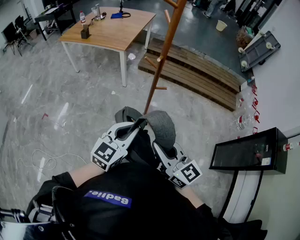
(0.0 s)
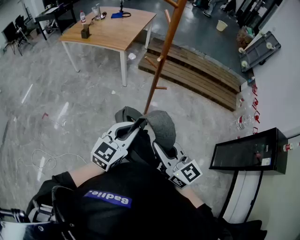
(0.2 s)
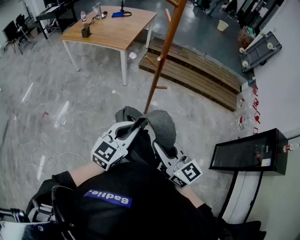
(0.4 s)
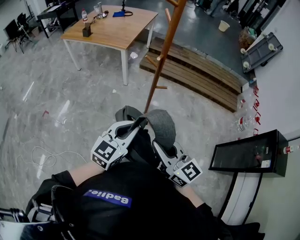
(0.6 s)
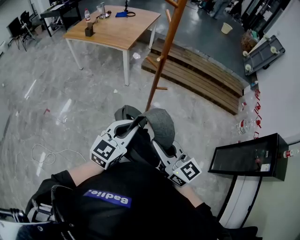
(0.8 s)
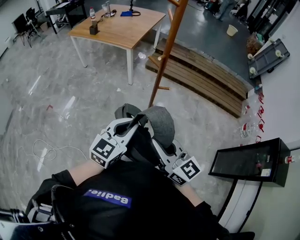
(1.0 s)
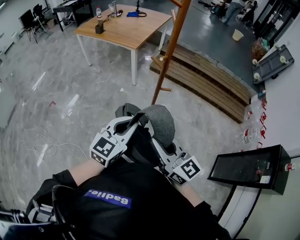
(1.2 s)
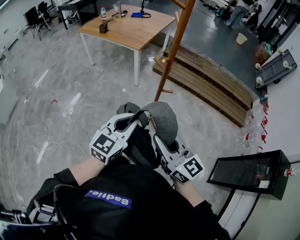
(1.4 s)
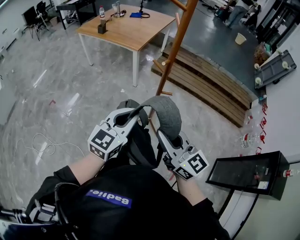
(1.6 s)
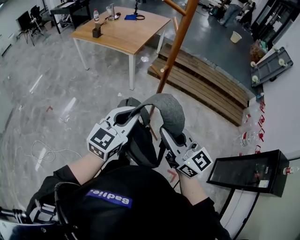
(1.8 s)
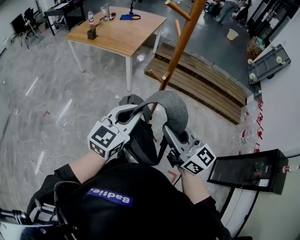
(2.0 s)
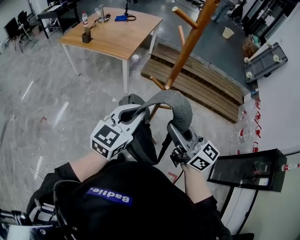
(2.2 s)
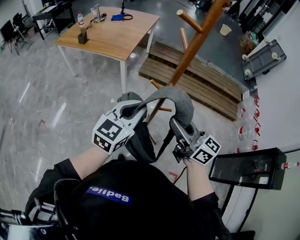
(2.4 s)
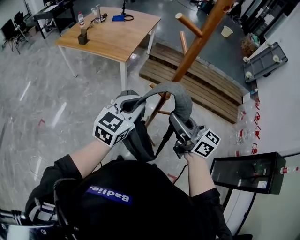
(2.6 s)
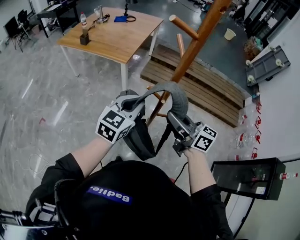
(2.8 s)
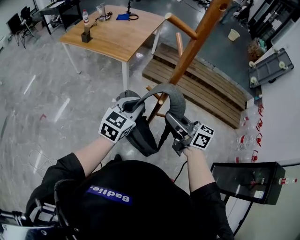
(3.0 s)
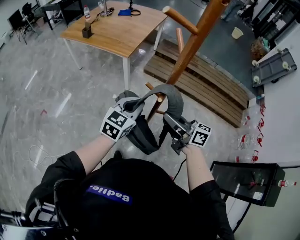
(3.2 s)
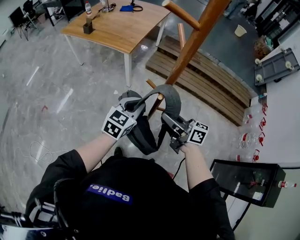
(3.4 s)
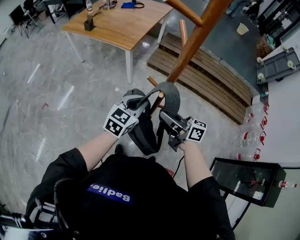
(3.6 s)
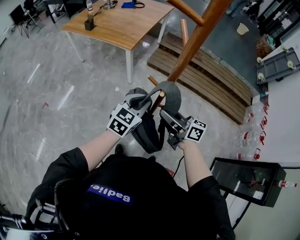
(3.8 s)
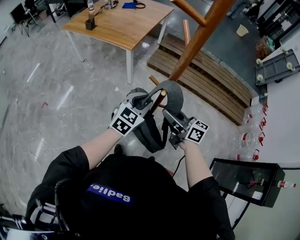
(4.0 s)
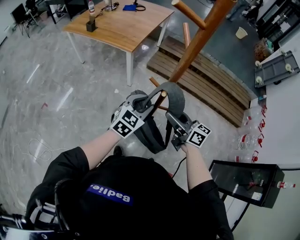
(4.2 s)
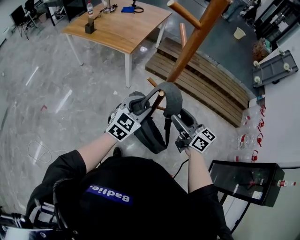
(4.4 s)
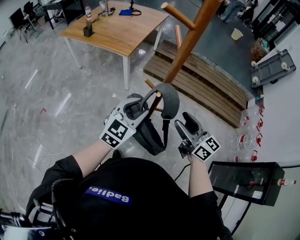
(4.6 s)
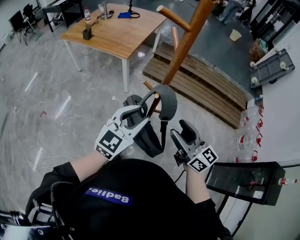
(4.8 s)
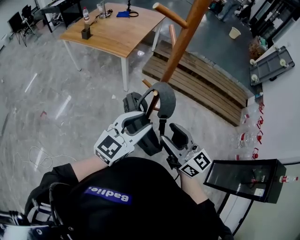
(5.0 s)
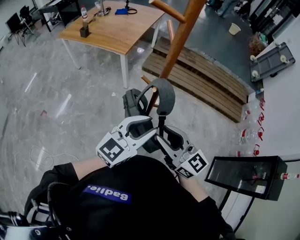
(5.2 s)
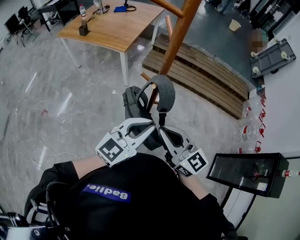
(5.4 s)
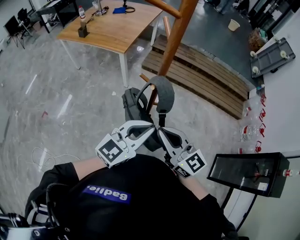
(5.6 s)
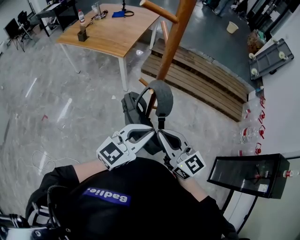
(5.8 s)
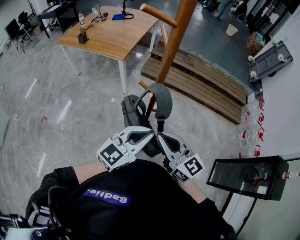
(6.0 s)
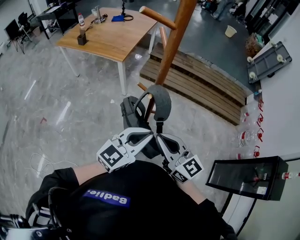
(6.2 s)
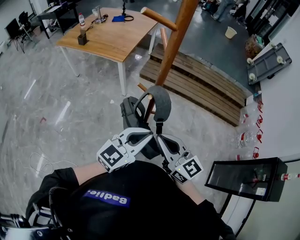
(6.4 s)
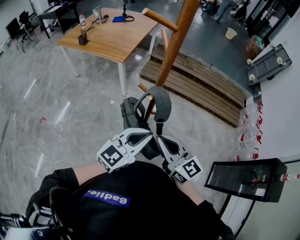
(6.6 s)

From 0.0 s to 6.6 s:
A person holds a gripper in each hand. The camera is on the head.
From 0.0 s to 1.6 s: Both grippers move forward, some 5 cm.
From 1.6 s to 3.2 s: Both grippers move forward, roughly 25 cm. The right gripper turns by roughly 40 degrees.
From 3.2 s to 5.0 s: The right gripper travels backward by roughly 10 cm, swivels approximately 30 degrees, and opens up. Meanwhile the left gripper is displaced backward and upward by approximately 15 cm, and opens its fingers.
From 5.0 s to 6.6 s: The left gripper closes. Meanwhile the right gripper closes its fingers.

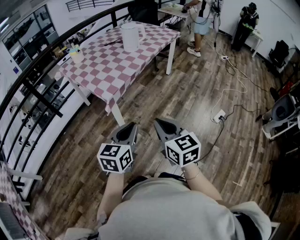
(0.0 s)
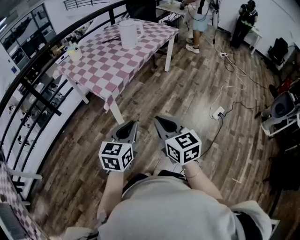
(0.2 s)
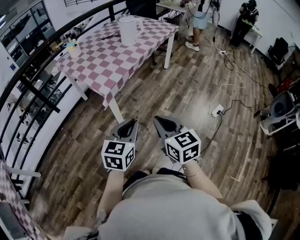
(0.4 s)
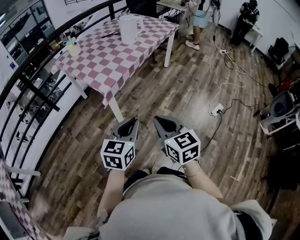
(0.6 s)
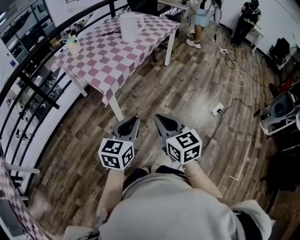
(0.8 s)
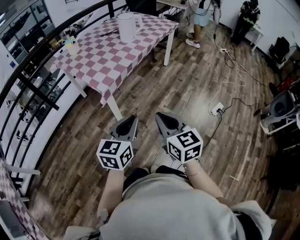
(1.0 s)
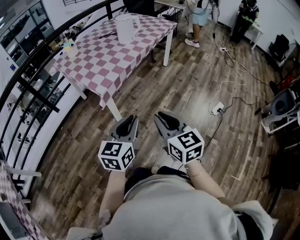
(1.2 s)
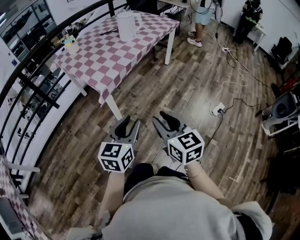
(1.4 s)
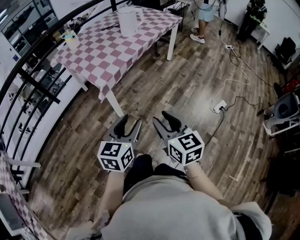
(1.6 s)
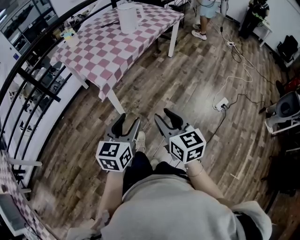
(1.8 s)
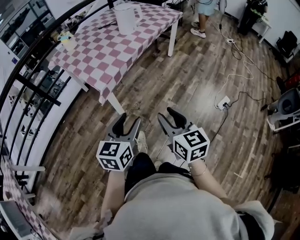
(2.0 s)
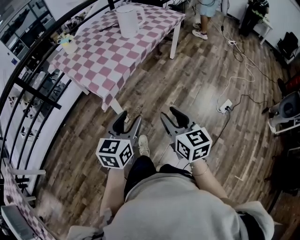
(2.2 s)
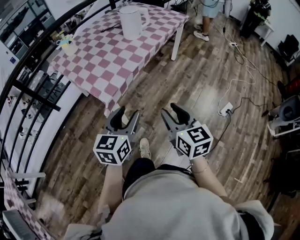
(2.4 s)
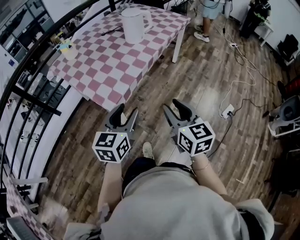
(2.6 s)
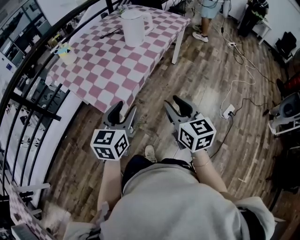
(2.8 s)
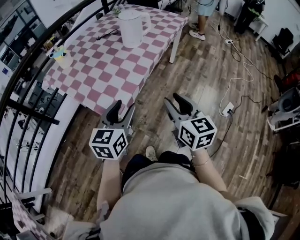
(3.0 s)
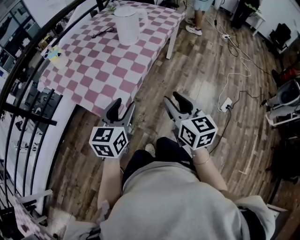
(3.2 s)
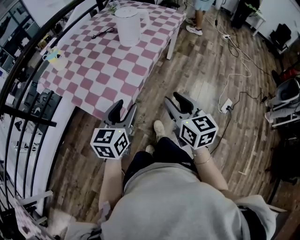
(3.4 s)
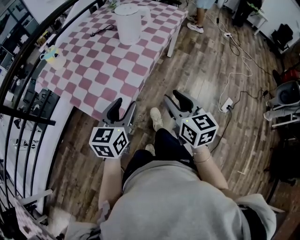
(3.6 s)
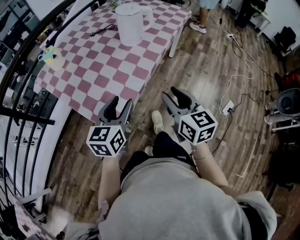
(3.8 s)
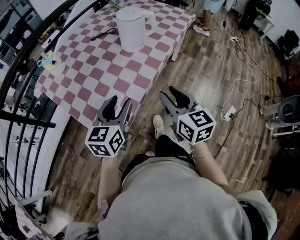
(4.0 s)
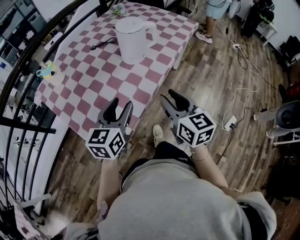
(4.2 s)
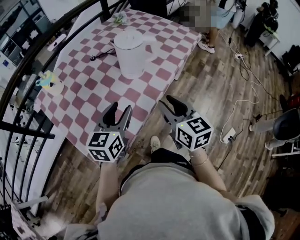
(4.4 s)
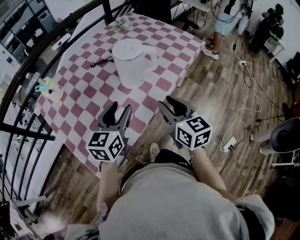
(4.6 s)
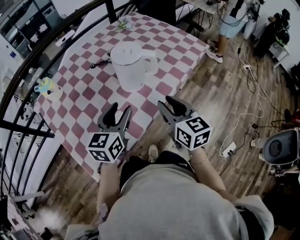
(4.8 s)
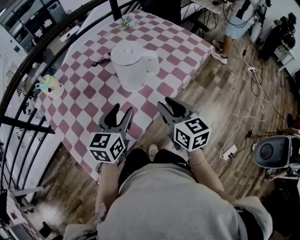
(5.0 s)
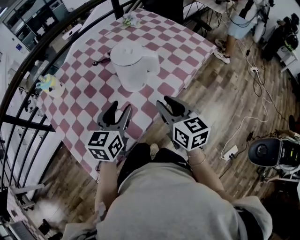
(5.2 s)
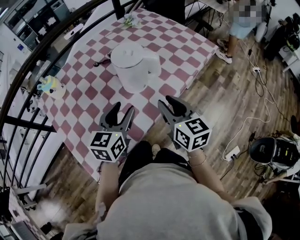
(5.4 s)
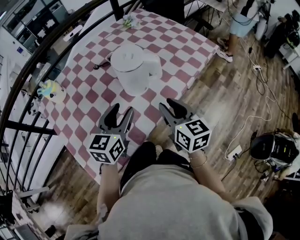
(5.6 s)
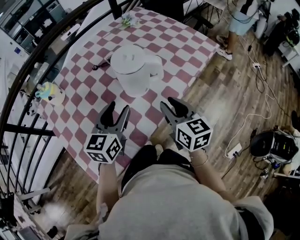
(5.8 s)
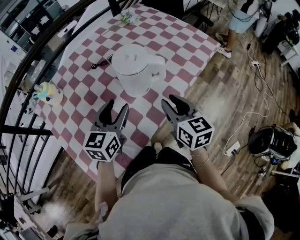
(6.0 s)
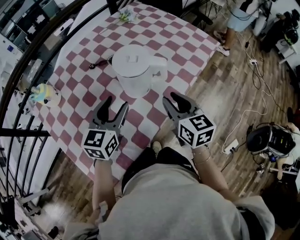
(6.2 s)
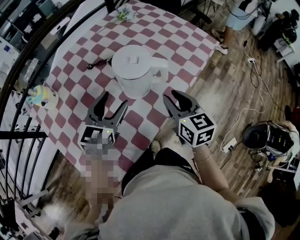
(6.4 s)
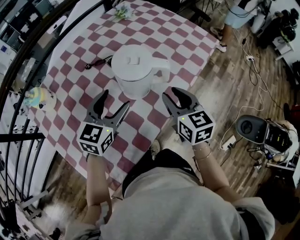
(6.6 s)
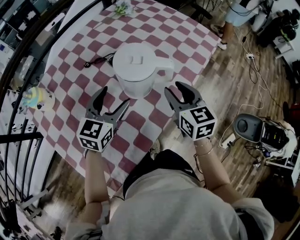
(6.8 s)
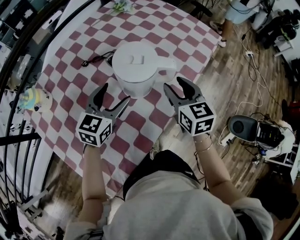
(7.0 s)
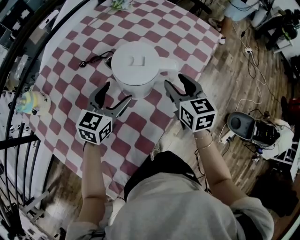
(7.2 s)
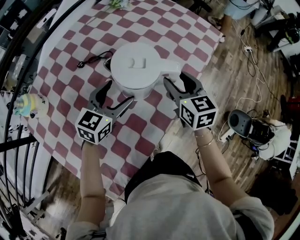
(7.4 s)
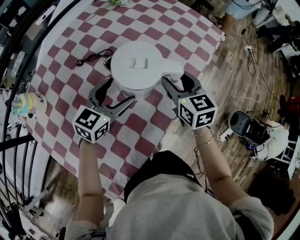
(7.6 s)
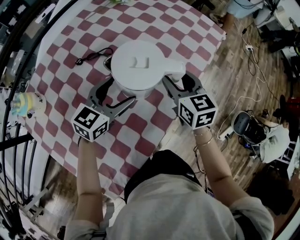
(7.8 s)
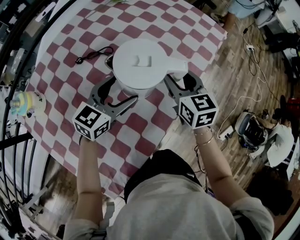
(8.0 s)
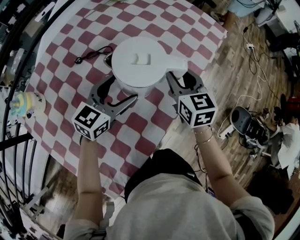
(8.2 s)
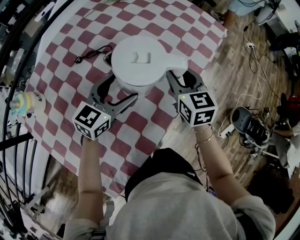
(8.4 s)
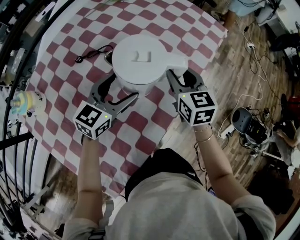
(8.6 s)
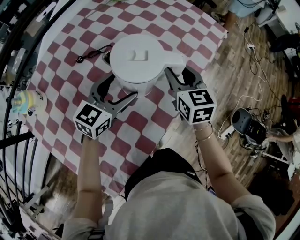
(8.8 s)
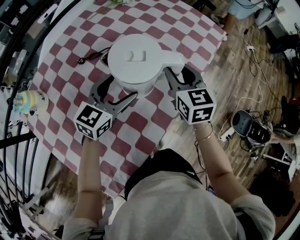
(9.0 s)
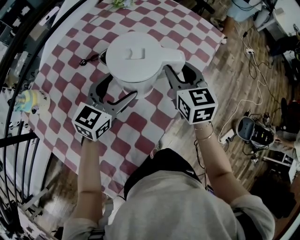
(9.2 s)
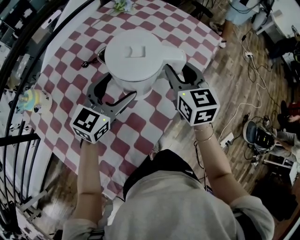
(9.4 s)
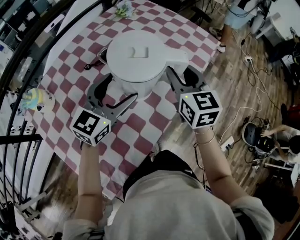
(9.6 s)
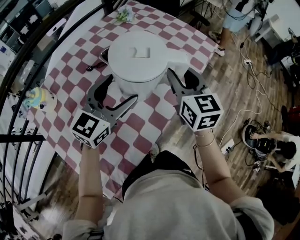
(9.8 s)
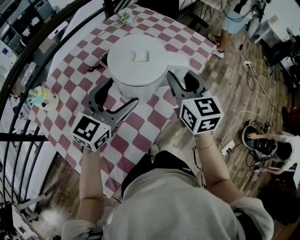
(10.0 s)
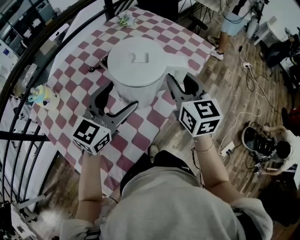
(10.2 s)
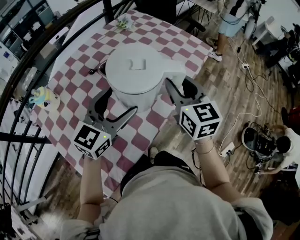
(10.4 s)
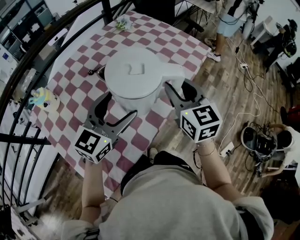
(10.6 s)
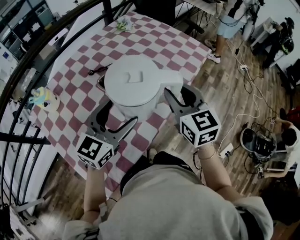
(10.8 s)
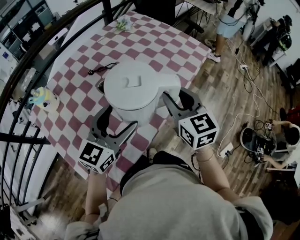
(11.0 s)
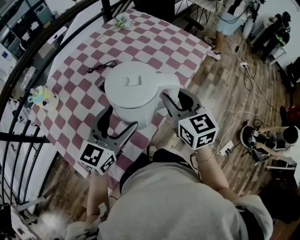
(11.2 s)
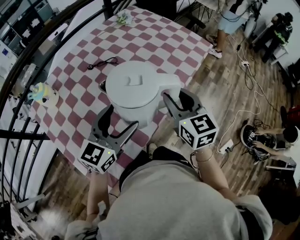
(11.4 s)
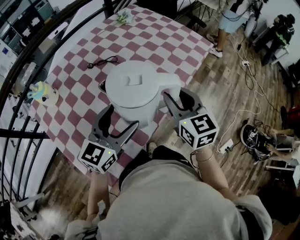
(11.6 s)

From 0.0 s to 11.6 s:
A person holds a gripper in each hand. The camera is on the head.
From 0.0 s to 1.4 s: The right gripper opens its fingers.
From 1.4 s to 2.8 s: Both grippers travel together forward, some 25 cm.
From 2.8 s to 4.4 s: Both grippers travel together forward, some 30 cm.
From 4.4 s to 5.8 s: The two grippers go approximately 15 cm forward.
From 5.8 s to 7.2 s: The right gripper travels forward by approximately 15 cm, and opens up, while the left gripper goes about 15 cm forward and downward, rotates about 20 degrees, and opens up.
From 7.2 s to 8.8 s: The grippers move only a little.
From 8.8 s to 10.2 s: Both grippers move upward and backward, roughly 15 cm.
From 10.2 s to 11.6 s: The grippers both shift backward by about 5 cm.

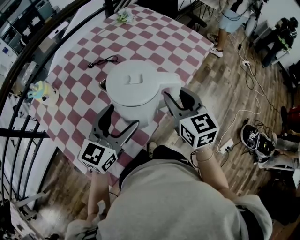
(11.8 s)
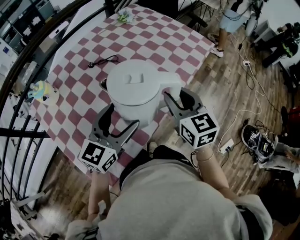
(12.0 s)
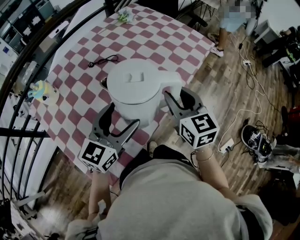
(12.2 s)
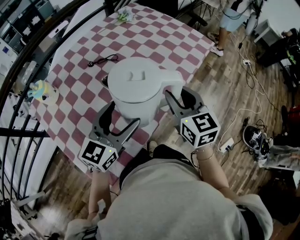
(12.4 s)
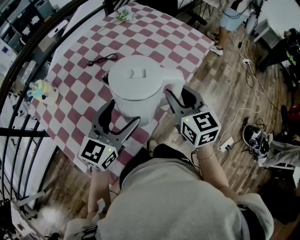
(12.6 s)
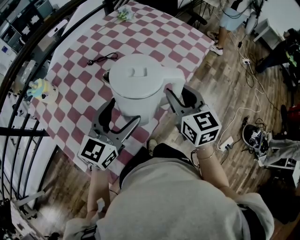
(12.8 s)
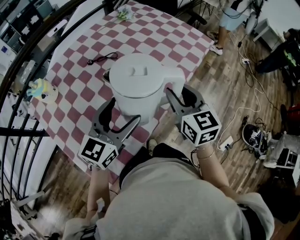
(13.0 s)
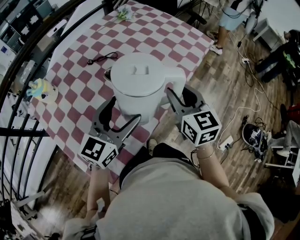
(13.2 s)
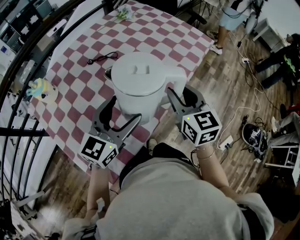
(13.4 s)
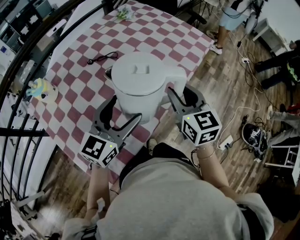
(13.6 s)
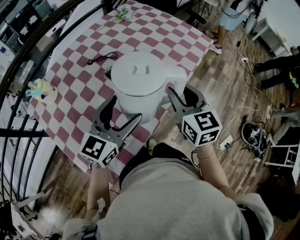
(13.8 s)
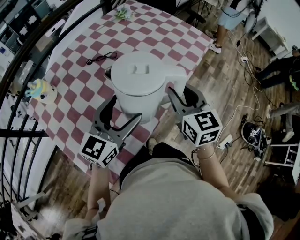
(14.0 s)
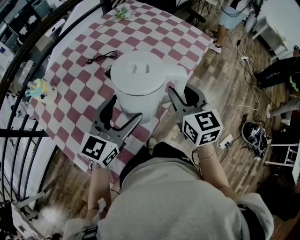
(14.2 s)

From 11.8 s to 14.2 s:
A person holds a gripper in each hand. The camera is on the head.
From 11.8 s to 14.2 s: Both grippers stay put.

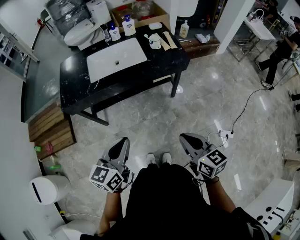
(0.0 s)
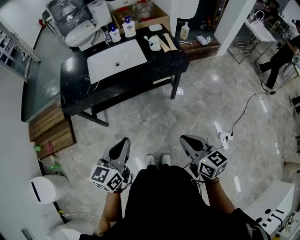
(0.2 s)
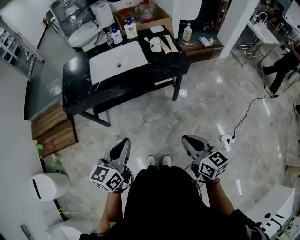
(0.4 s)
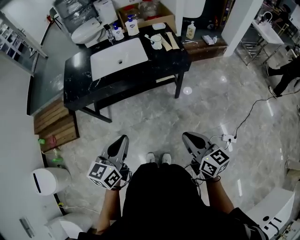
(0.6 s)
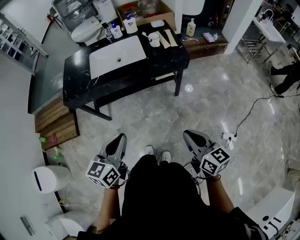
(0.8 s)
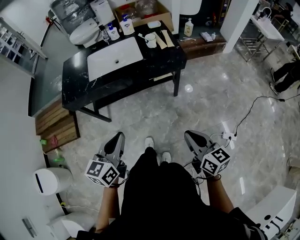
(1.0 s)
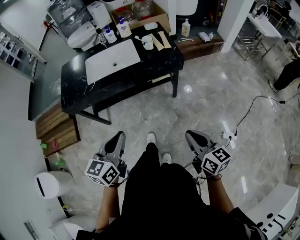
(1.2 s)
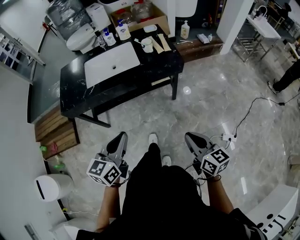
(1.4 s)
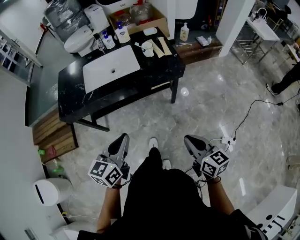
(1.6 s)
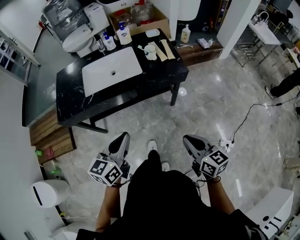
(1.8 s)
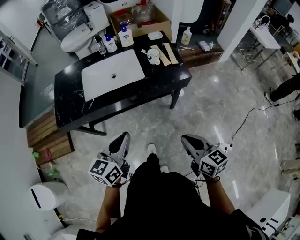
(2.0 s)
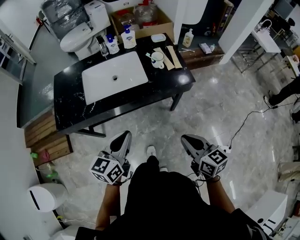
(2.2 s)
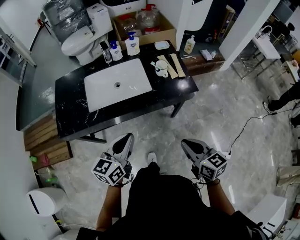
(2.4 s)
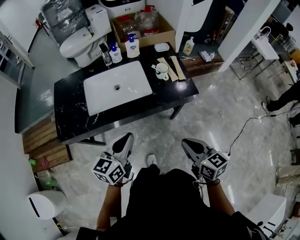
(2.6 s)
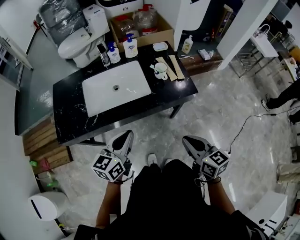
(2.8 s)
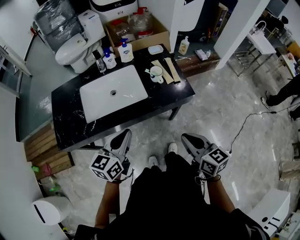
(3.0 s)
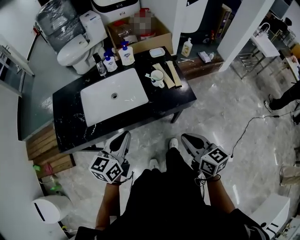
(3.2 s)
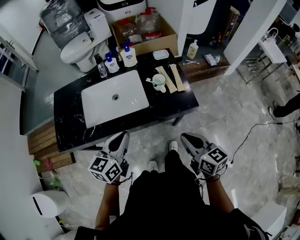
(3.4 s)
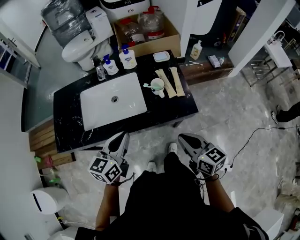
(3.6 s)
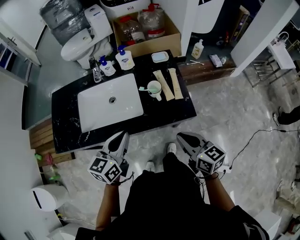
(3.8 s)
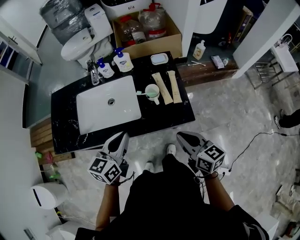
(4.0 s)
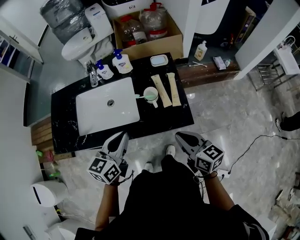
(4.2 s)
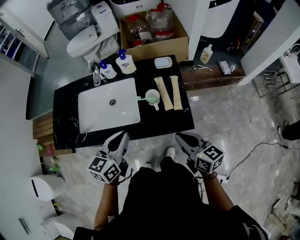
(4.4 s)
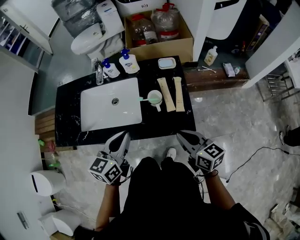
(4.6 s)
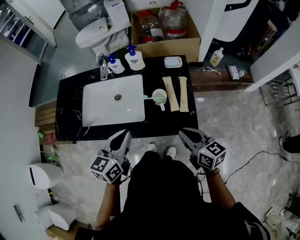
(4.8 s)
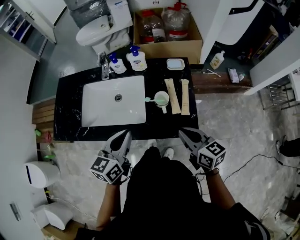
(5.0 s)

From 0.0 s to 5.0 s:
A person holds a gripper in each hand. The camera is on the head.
From 0.0 s to 1.6 s: The right gripper moves to the right, some 10 cm. Meanwhile the left gripper heads to the right and forward, covering approximately 10 cm.
From 1.6 s to 3.4 s: The grippers both shift forward by some 25 cm.
From 3.4 s to 5.0 s: The two grippers go approximately 15 cm forward and to the right.
